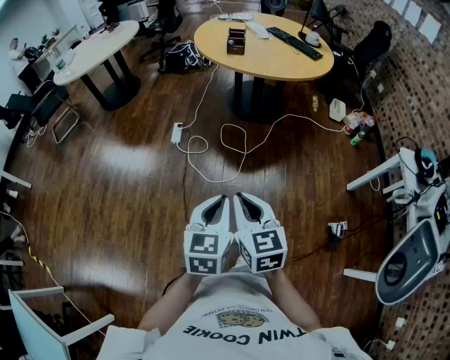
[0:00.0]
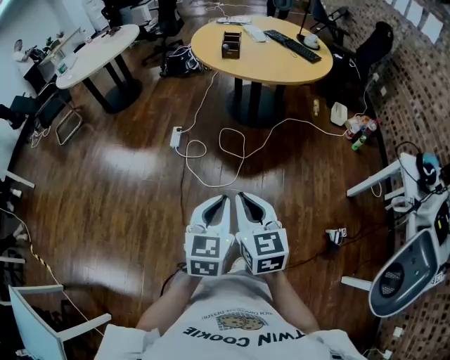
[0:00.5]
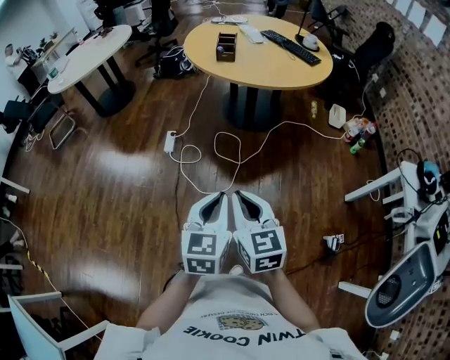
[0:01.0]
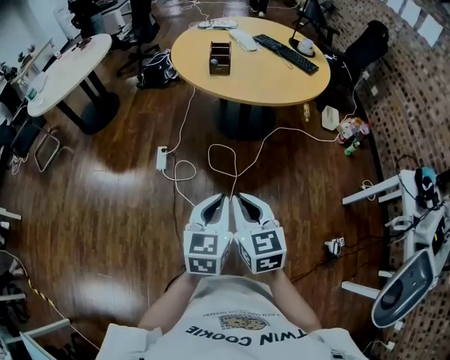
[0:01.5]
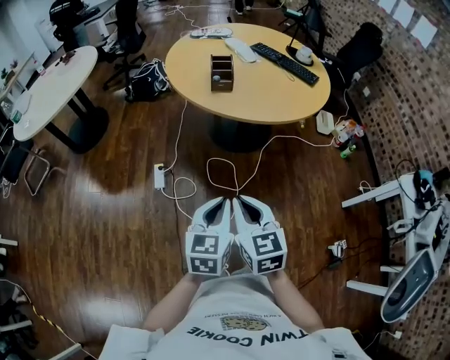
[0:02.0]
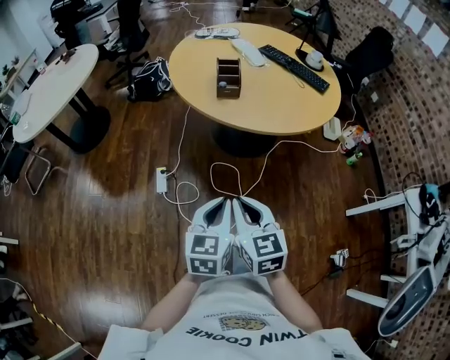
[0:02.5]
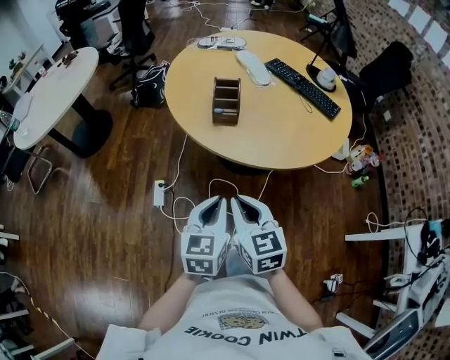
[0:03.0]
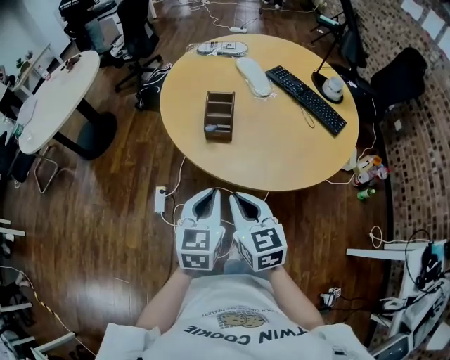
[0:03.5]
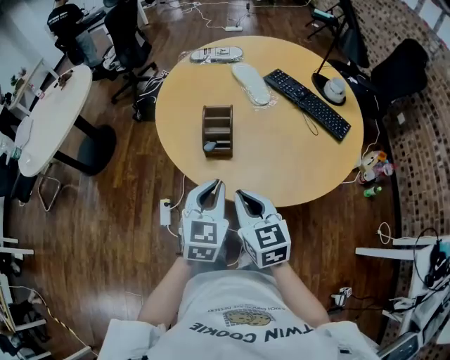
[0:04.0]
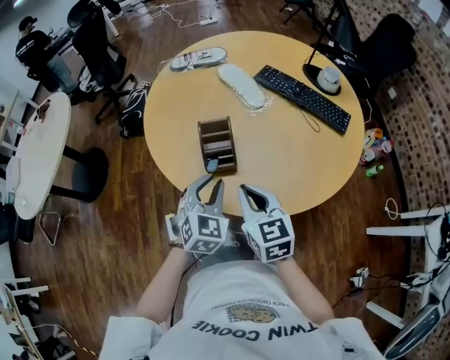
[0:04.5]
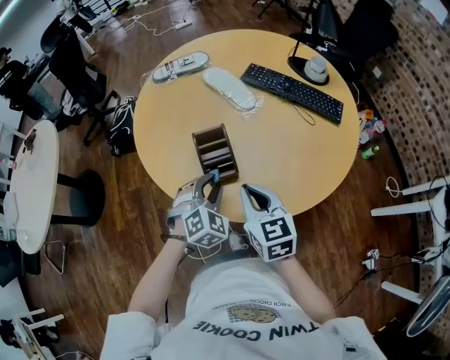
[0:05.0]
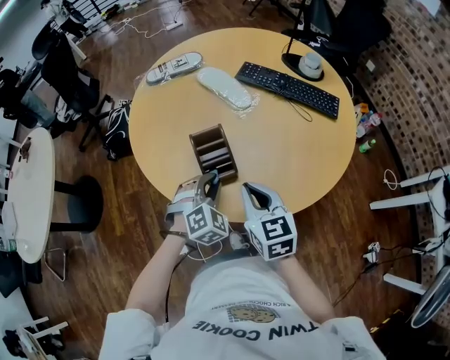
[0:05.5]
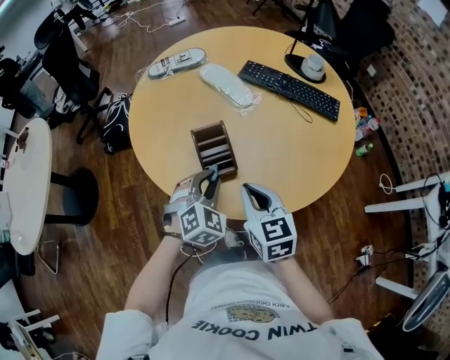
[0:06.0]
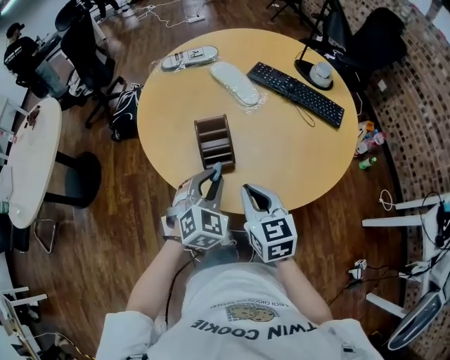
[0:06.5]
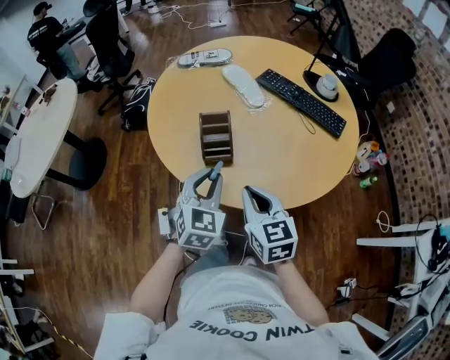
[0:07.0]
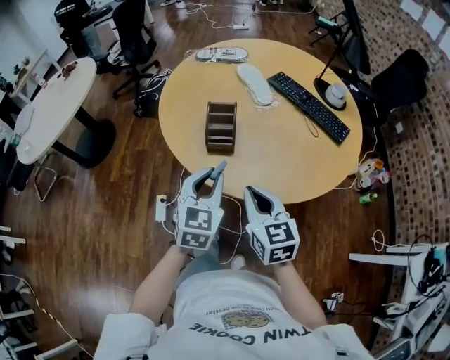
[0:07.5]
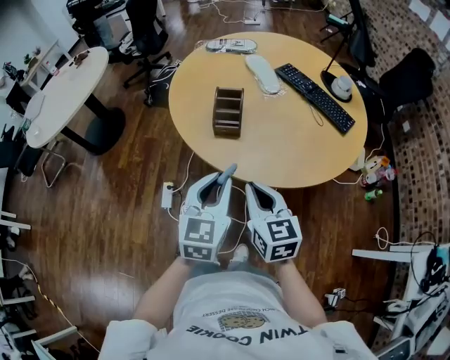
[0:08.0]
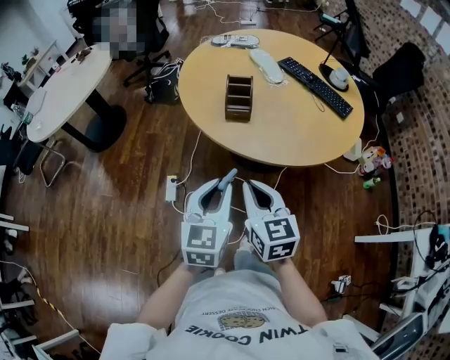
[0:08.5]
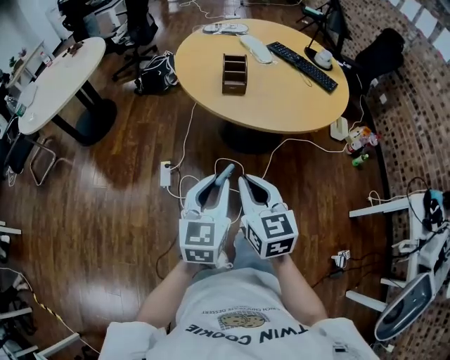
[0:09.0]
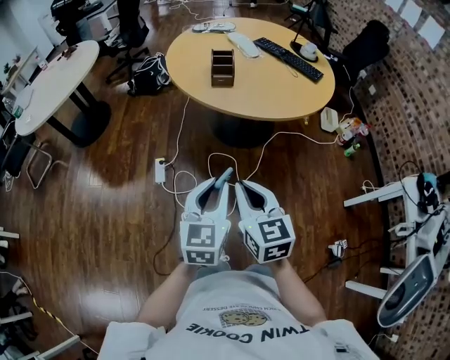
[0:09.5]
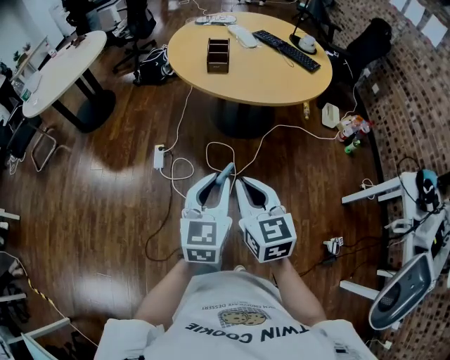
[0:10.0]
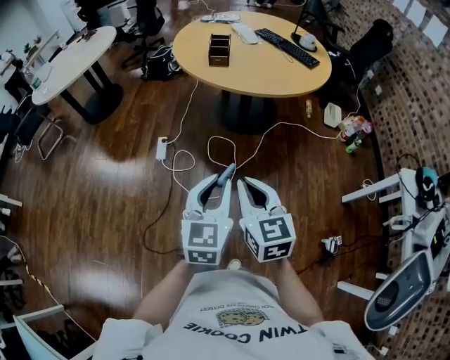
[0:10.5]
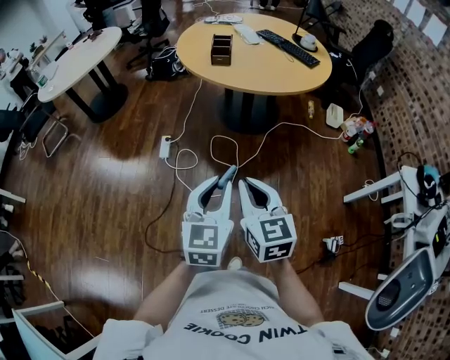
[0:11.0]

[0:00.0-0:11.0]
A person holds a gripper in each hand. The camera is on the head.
0:00.0 to 0:02.0: The grippers both shift forward by approximately 35 cm.
0:02.0 to 0:03.5: The grippers both shift forward by some 30 cm.
0:03.5 to 0:05.5: The left gripper shifts roughly 25 cm forward and downward, and rotates around the line of its fingers by about 60 degrees, clockwise from behind. Meanwhile the right gripper goes some 20 cm forward, and swivels approximately 20 degrees.
0:05.5 to 0:07.5: The left gripper travels backward and upward by approximately 20 cm, and rotates around the line of its fingers by approximately 50 degrees, counterclockwise from behind, while the right gripper shifts about 15 cm backward and to the right.
0:07.5 to 0:09.0: The right gripper heads backward and to the left, covering some 30 cm. The left gripper shifts roughly 30 cm backward.
0:09.0 to 0:11.0: The left gripper heads backward and to the right, covering about 30 cm, while the right gripper is displaced backward by approximately 25 cm.

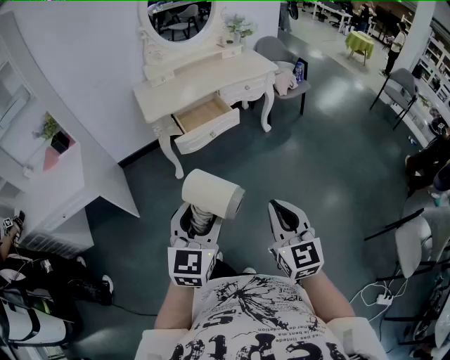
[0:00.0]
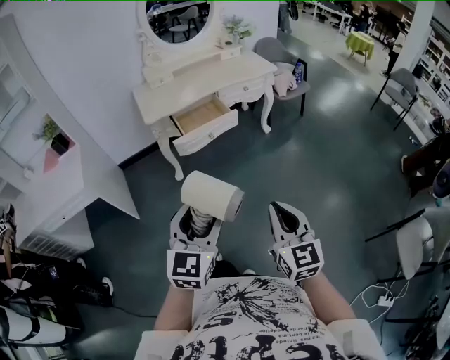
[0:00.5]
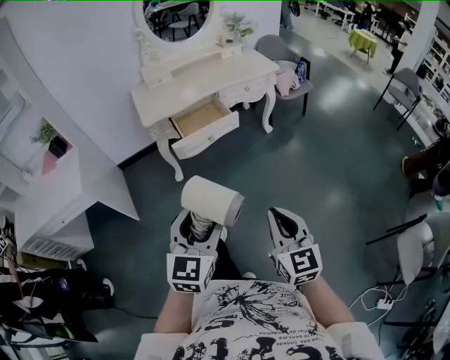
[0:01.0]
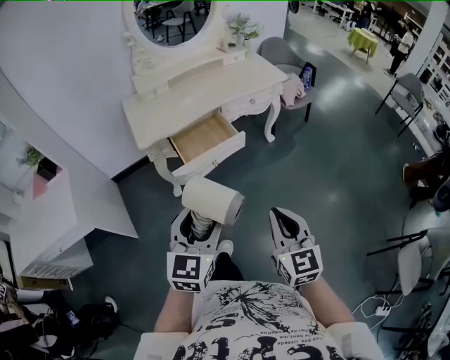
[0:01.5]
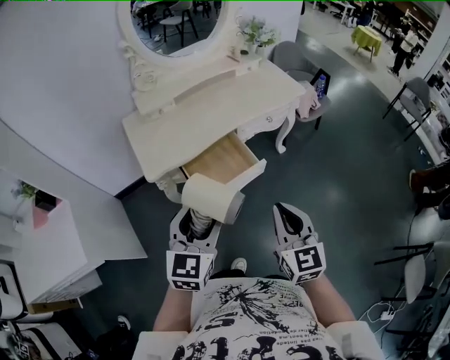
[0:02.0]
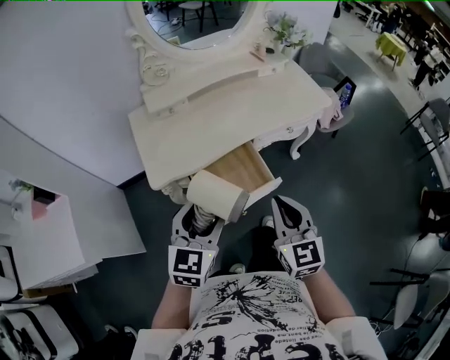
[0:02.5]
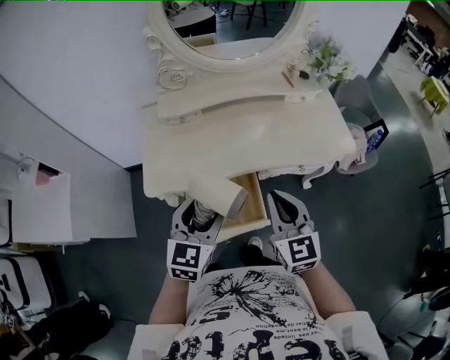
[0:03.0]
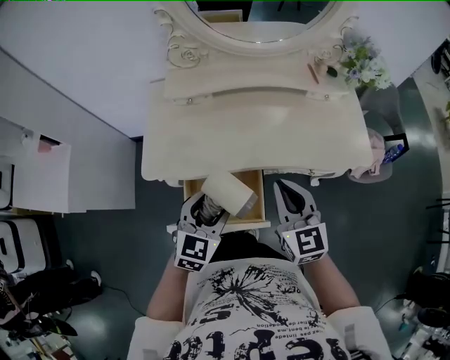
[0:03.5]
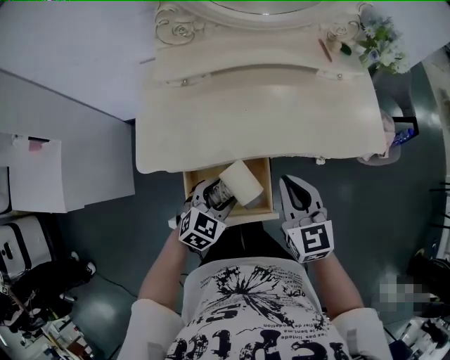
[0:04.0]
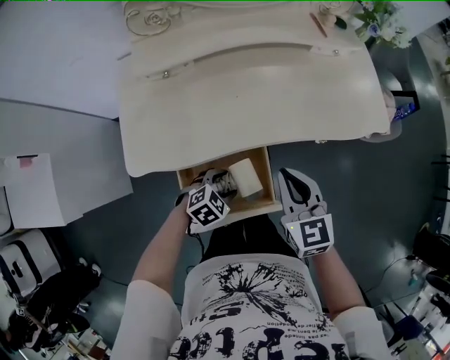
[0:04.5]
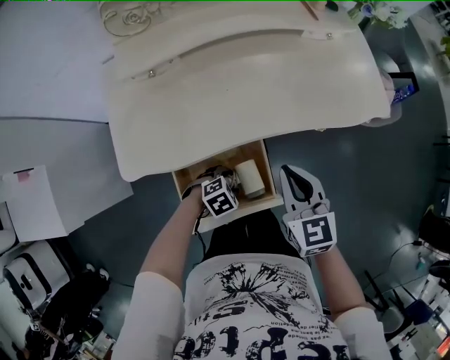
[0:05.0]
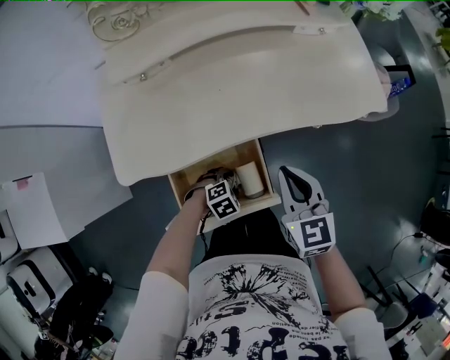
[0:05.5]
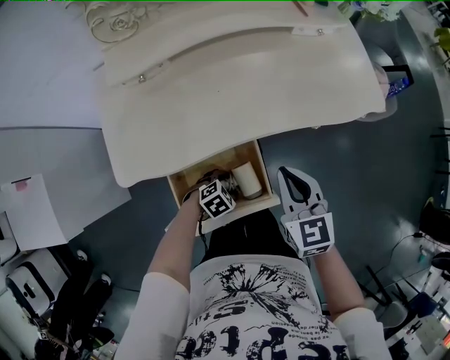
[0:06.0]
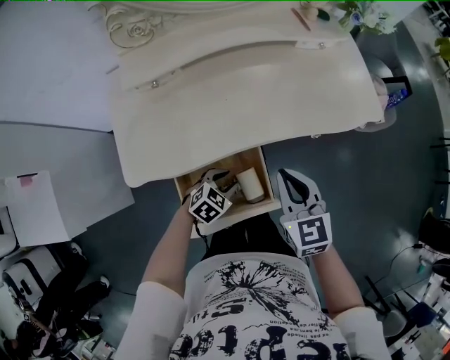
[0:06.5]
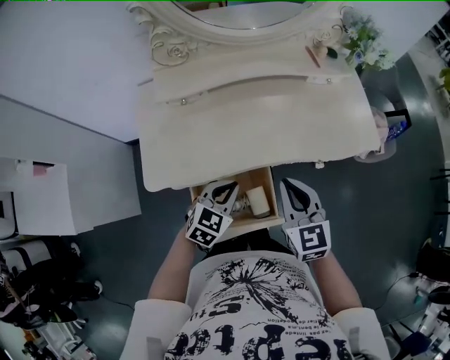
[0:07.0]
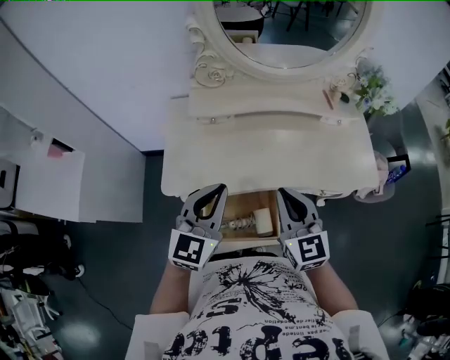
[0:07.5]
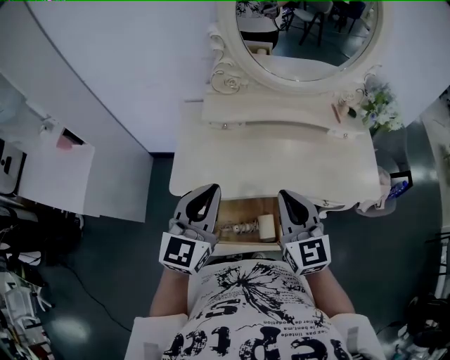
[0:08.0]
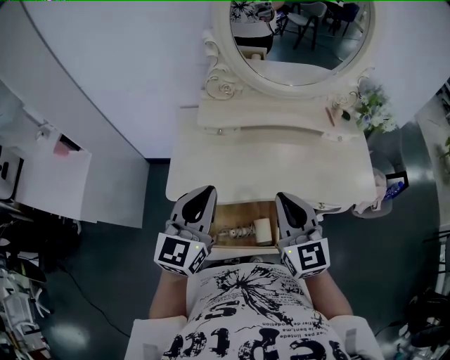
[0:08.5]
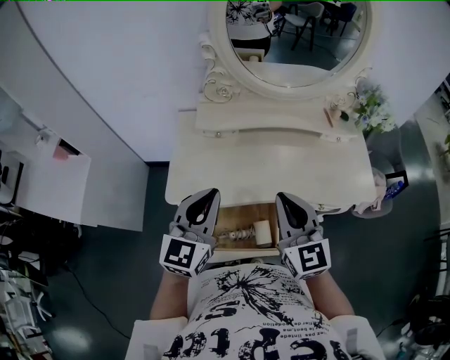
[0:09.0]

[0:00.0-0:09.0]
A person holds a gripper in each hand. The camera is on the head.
0:00.0 to 0:02.0: Both grippers are carried forward, roughly 40 cm.
0:02.0 to 0:04.5: The left gripper moves downward, roughly 35 cm, and angles its fingers downward, by approximately 40 degrees. Meanwhile the right gripper shifts by roughly 40 cm, and turns by approximately 30 degrees.
0:04.5 to 0:07.0: The right gripper is displaced upward by roughly 5 cm, while the left gripper goes approximately 15 cm upward, swivels about 30 degrees, and closes.
0:07.0 to 0:09.0: The left gripper is displaced upward and to the left by approximately 25 cm, and points its fingers about 30 degrees further upward; the right gripper is displaced upward and to the left by about 15 cm, and swivels roughly 20 degrees.

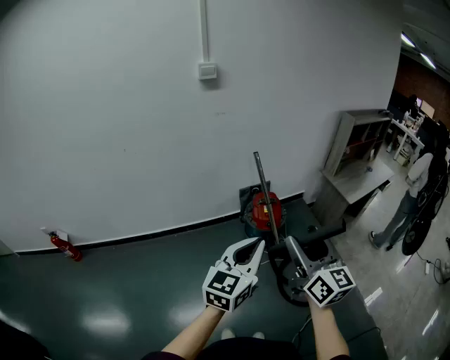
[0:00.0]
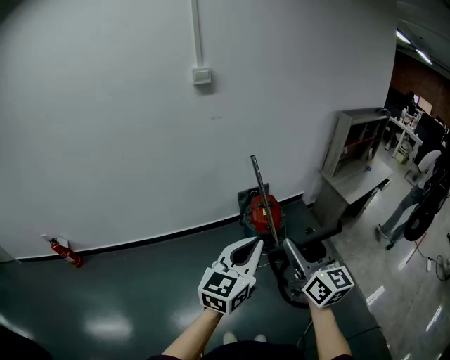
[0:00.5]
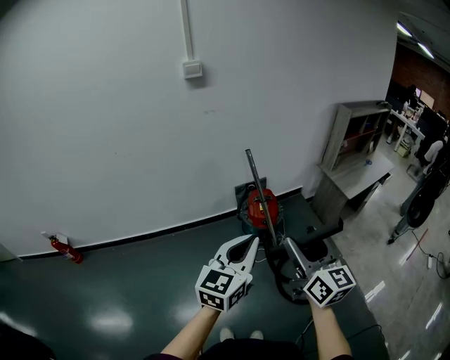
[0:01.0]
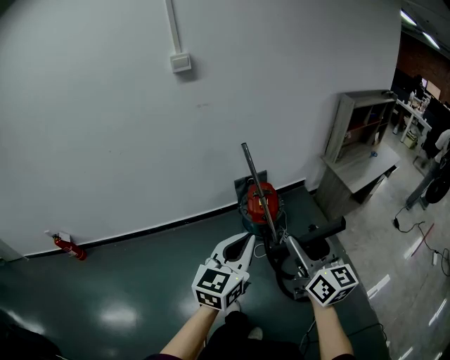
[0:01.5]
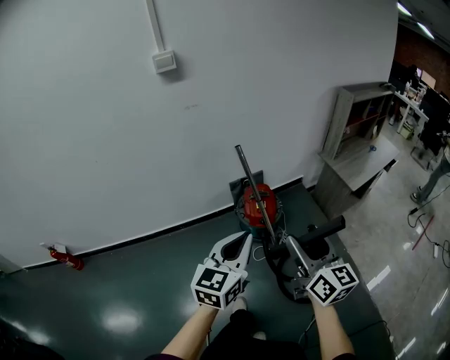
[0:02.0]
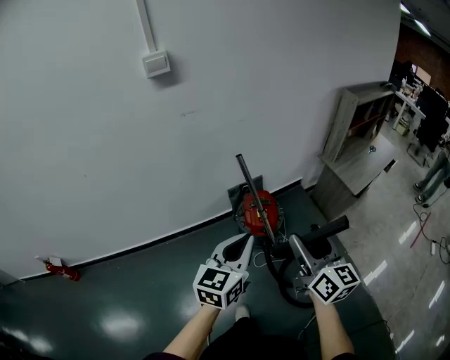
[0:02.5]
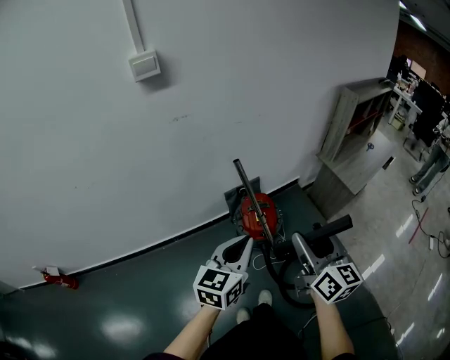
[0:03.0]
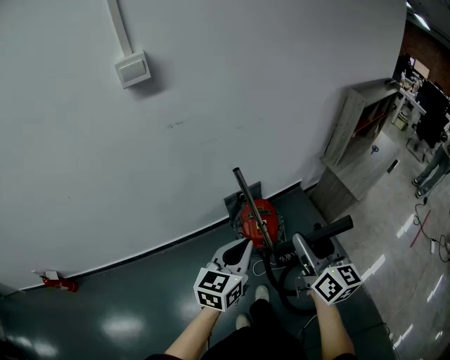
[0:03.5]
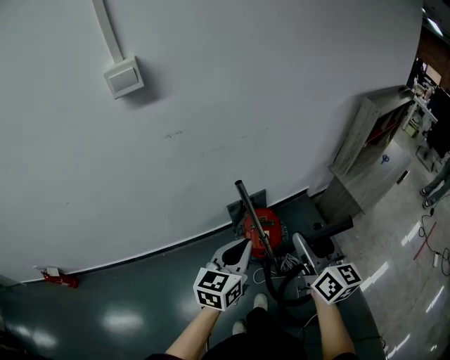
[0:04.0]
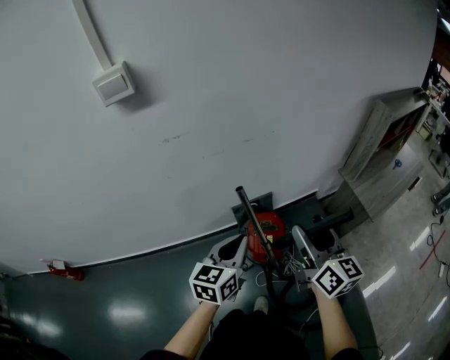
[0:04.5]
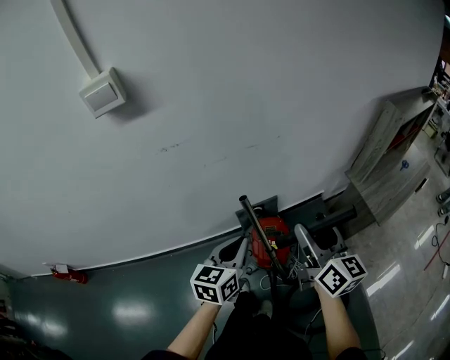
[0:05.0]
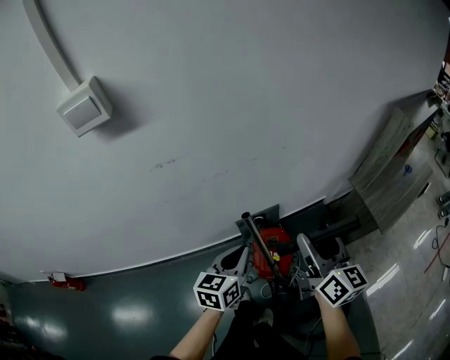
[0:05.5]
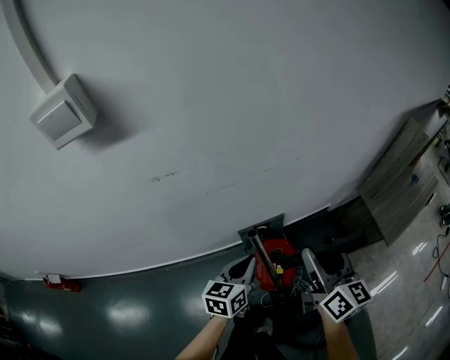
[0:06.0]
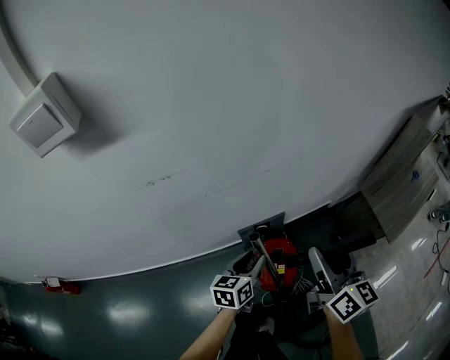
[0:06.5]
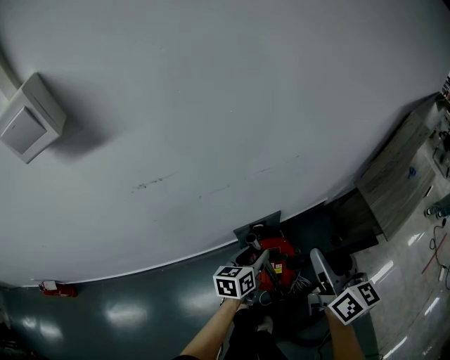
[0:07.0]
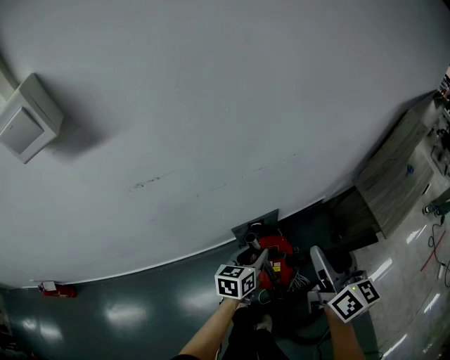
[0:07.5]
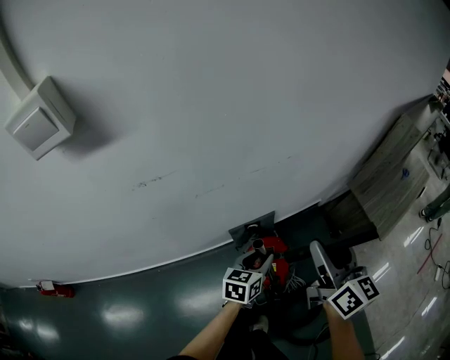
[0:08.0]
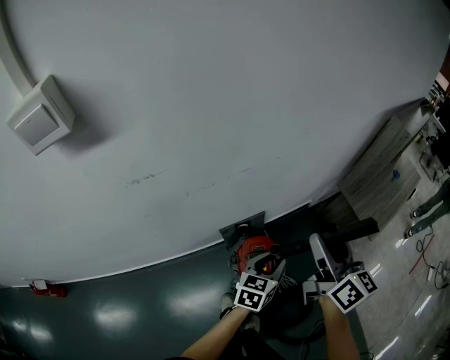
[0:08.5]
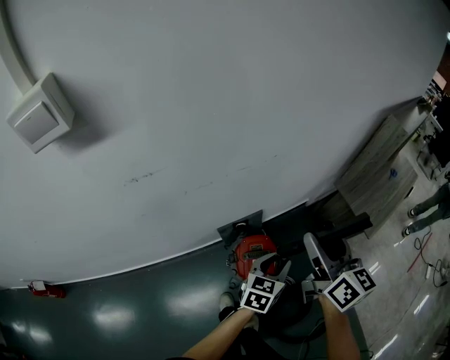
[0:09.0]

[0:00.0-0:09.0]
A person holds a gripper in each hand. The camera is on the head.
0:00.0 to 0:02.0: The left gripper is displaced forward by some 15 cm; the right gripper travels forward, to the right and downward by roughly 15 cm.
0:02.0 to 0:04.5: Both grippers move forward, approximately 35 cm.
0:04.5 to 0:07.0: The right gripper travels forward and downward by approximately 15 cm, while the left gripper is displaced downward and forward by roughly 30 cm, changes its angle by about 20 degrees, and opens.
0:07.0 to 0:09.0: The left gripper shifts some 15 cm to the right and upward, and changes its angle by roughly 20 degrees; the right gripper travels upward by approximately 5 cm.
